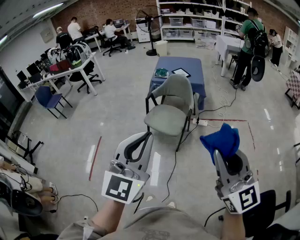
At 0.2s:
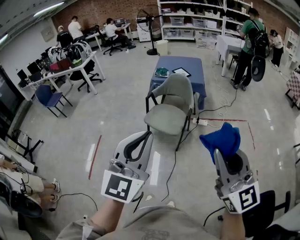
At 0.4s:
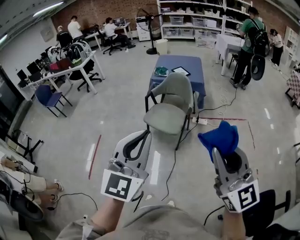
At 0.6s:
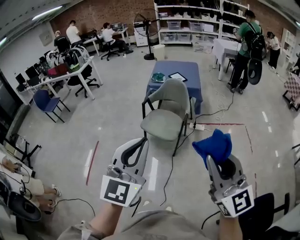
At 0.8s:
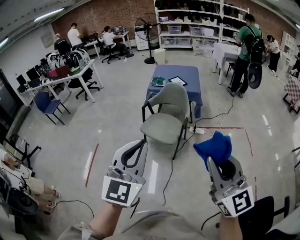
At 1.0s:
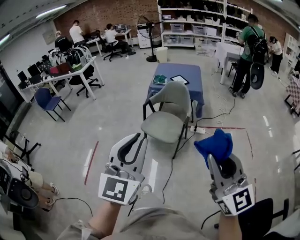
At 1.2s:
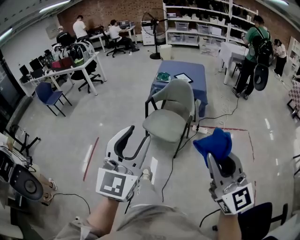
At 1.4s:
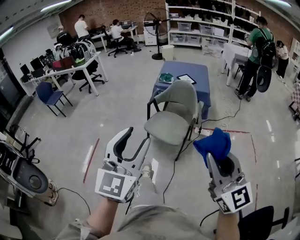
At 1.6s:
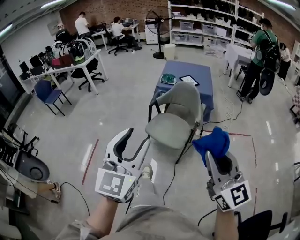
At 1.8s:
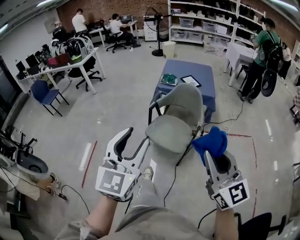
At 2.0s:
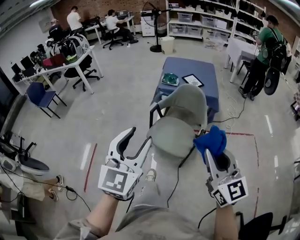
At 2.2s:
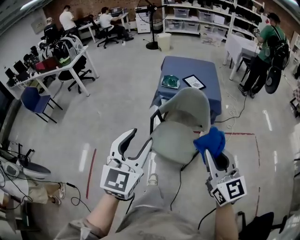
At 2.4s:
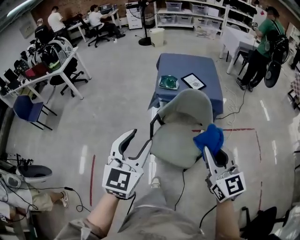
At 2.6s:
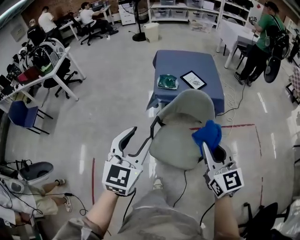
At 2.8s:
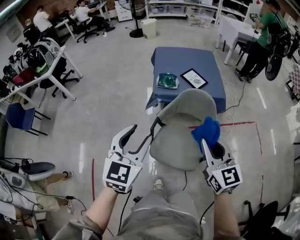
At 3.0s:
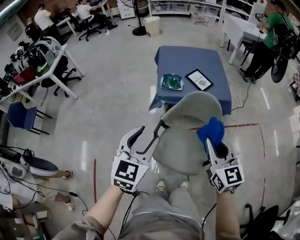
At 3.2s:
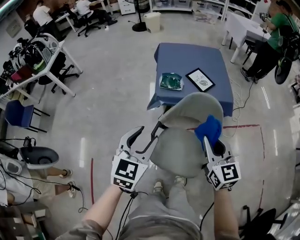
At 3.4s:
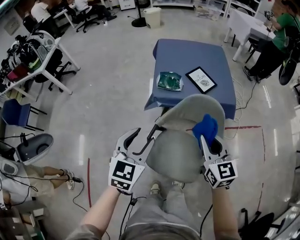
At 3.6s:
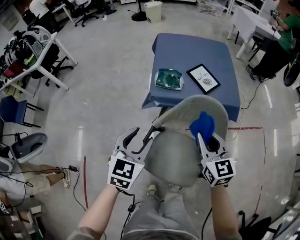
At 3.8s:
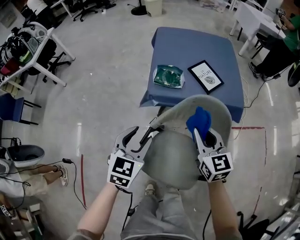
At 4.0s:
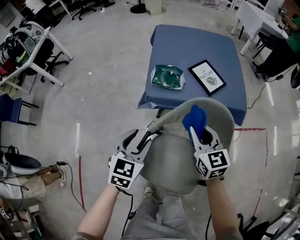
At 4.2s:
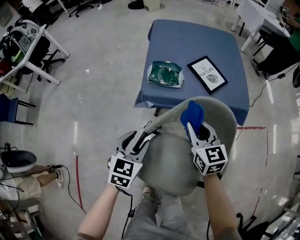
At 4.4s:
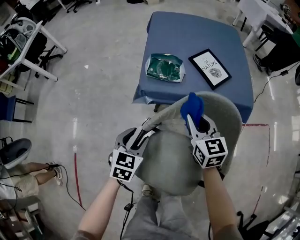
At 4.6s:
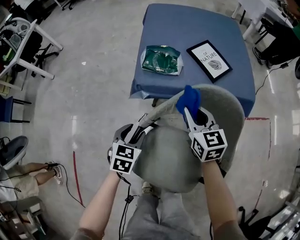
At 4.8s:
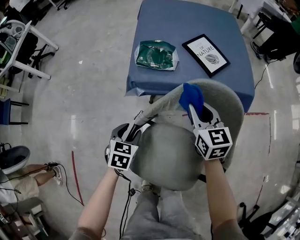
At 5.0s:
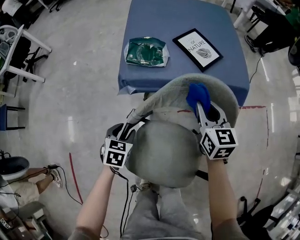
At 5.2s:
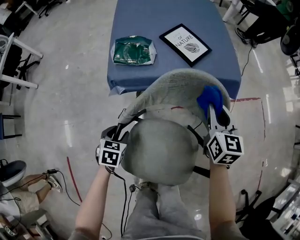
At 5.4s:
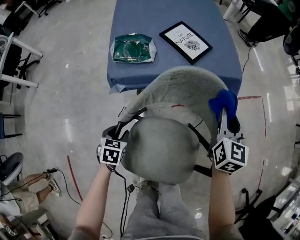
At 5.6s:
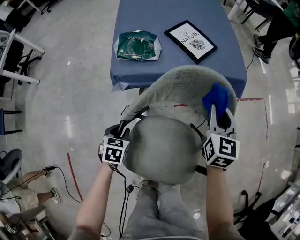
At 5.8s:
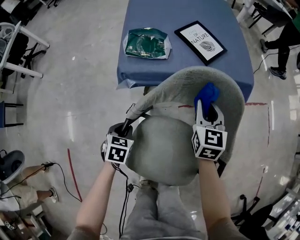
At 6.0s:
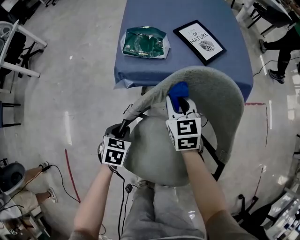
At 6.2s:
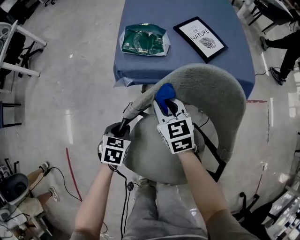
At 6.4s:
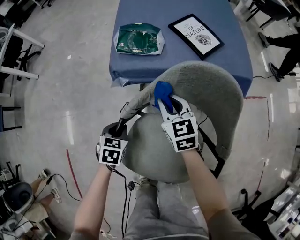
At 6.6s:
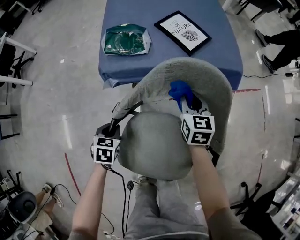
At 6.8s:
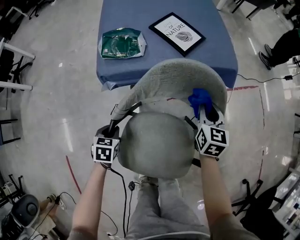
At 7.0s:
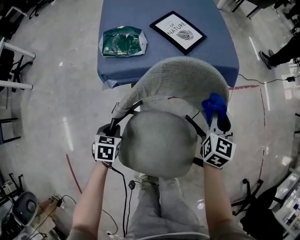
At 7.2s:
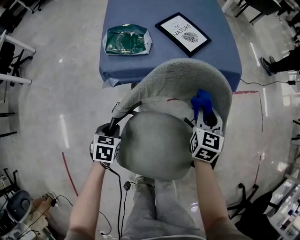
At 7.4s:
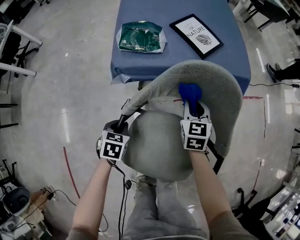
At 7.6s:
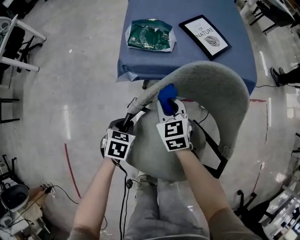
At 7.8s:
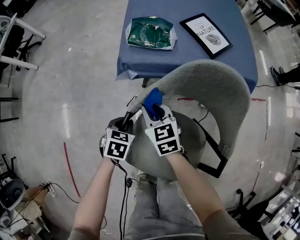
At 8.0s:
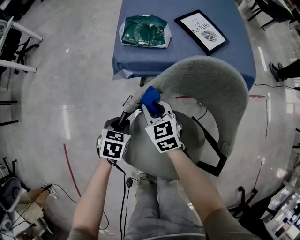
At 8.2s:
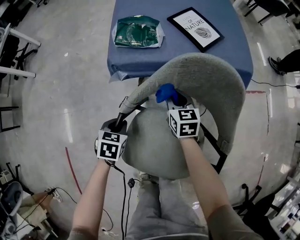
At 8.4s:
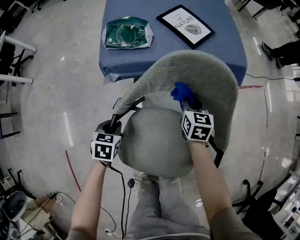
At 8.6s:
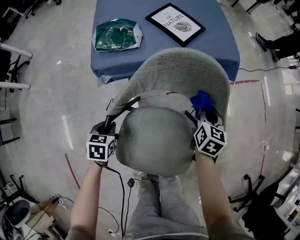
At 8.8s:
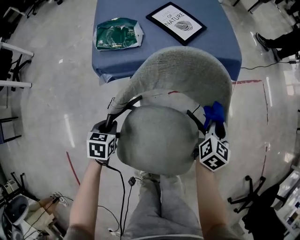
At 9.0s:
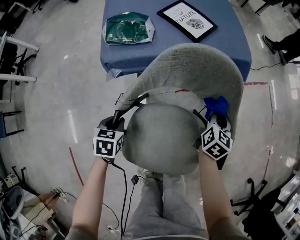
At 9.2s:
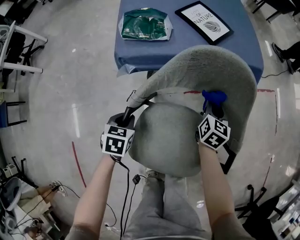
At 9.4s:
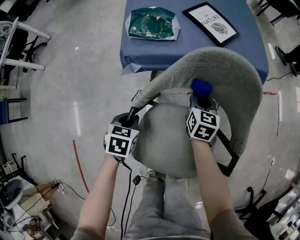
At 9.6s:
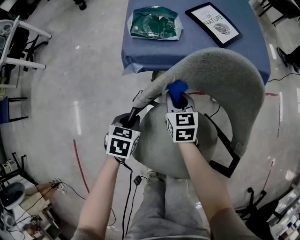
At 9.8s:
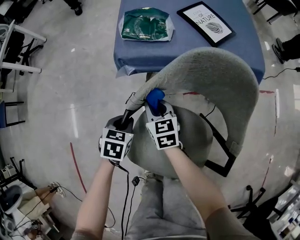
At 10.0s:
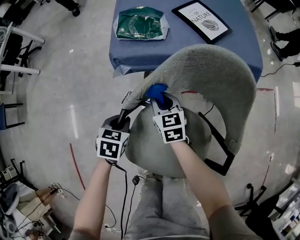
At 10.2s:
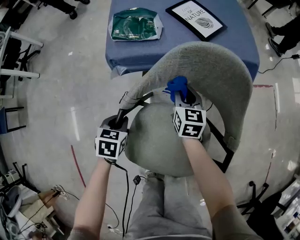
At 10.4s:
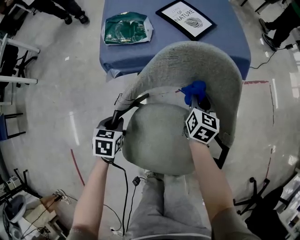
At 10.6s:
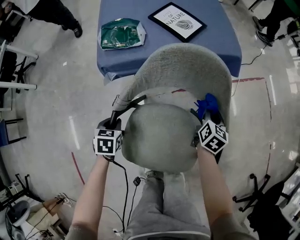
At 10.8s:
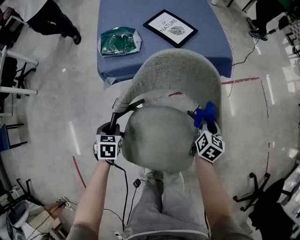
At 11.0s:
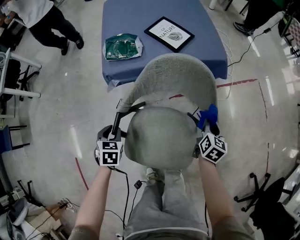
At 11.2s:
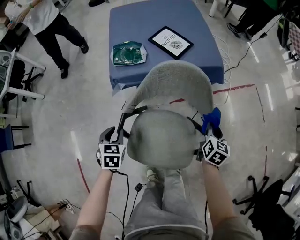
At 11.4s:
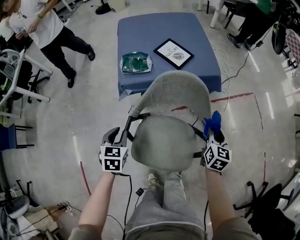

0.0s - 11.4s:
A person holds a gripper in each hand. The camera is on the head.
0.0s - 1.4s: The right gripper is displaced forward and downward by about 10 cm. Meanwhile the left gripper heads forward, covering roughly 10 cm, and opens.
1.4s - 2.8s: The pair of grippers is taken forward, approximately 50 cm. The right gripper rotates approximately 30 degrees, while the left gripper swivels roughly 30 degrees.
2.8s - 4.2s: The left gripper goes approximately 40 cm downward and forward, and swivels approximately 20 degrees. The right gripper shifts some 40 cm forward and downward.
4.2s - 5.6s: The left gripper shifts approximately 20 cm downward, and rotates some 30 degrees. The right gripper shifts about 15 cm to the right, and rotates about 30 degrees.
5.6s - 7.2s: The right gripper travels downward by about 5 cm.
8.6s - 10.0s: The right gripper shifts by roughly 30 cm, and swivels roughly 40 degrees.
10.0s - 11.4s: The left gripper goes roughly 20 cm upward, while the right gripper heads to the right and upward, covering some 40 cm, and turns by roughly 40 degrees.

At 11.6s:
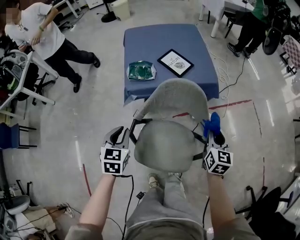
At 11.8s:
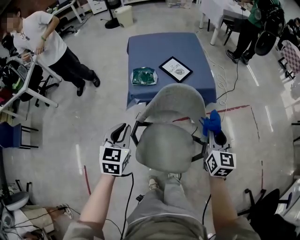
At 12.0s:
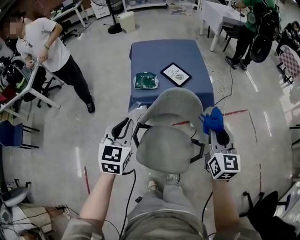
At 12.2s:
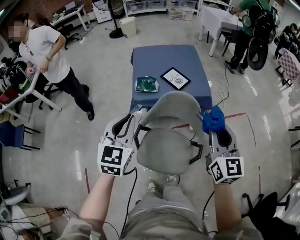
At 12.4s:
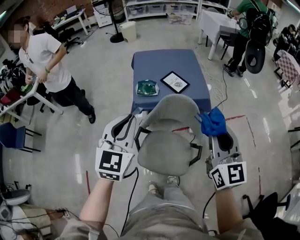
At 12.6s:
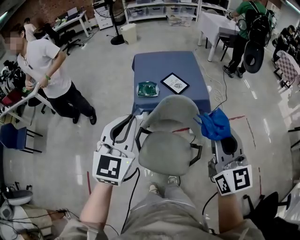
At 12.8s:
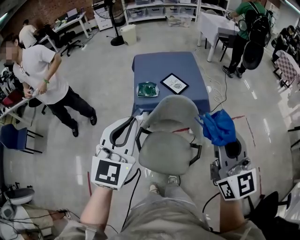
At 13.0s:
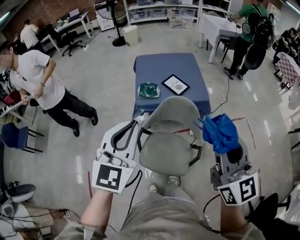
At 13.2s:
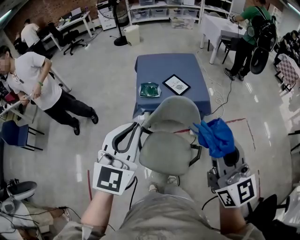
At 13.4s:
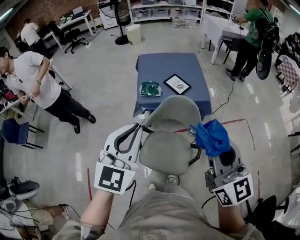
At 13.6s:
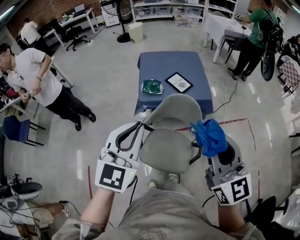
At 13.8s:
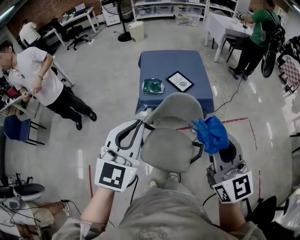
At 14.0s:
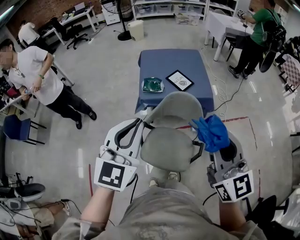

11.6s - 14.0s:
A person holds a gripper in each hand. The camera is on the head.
11.6s - 12.8s: Both grippers travel together upward, roughly 35 cm. The right gripper tips its fingers upward by approximately 30 degrees. The left gripper angles its fingers upward, by approximately 30 degrees.
12.8s - 14.0s: The grippers move only a little.

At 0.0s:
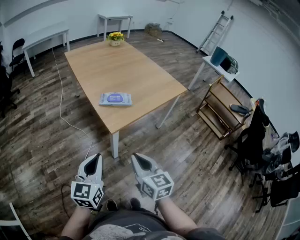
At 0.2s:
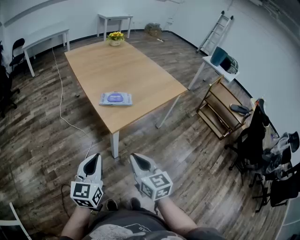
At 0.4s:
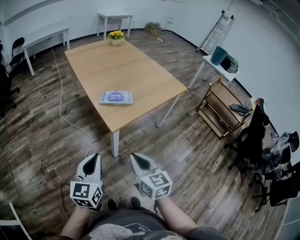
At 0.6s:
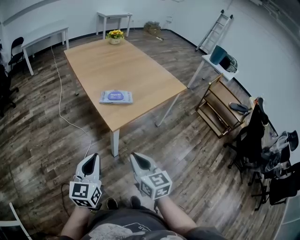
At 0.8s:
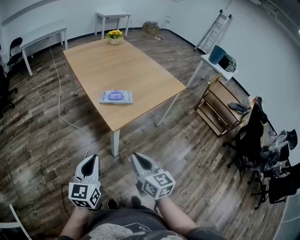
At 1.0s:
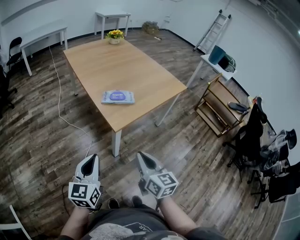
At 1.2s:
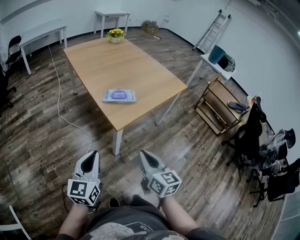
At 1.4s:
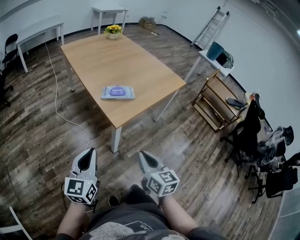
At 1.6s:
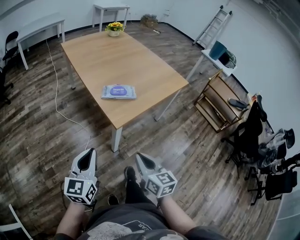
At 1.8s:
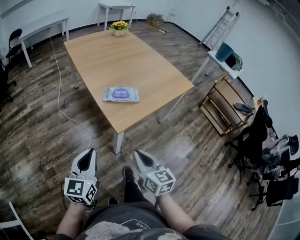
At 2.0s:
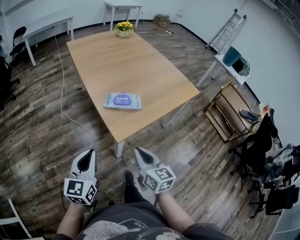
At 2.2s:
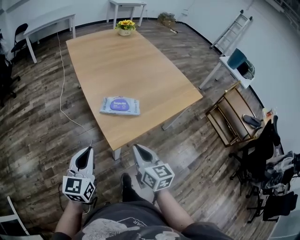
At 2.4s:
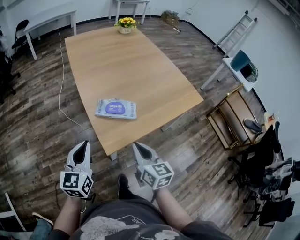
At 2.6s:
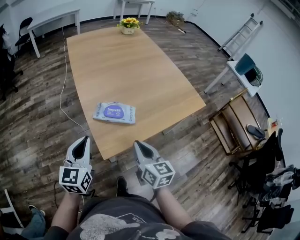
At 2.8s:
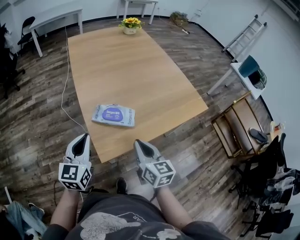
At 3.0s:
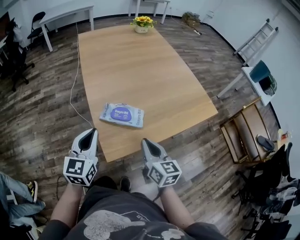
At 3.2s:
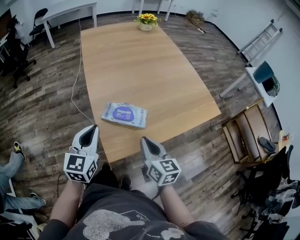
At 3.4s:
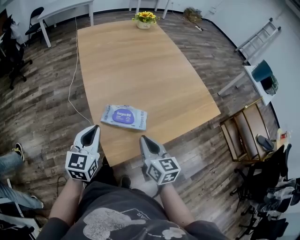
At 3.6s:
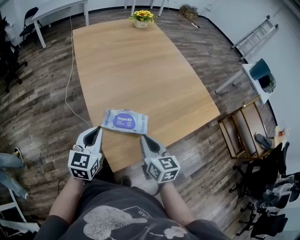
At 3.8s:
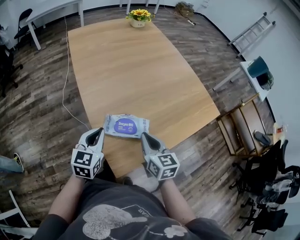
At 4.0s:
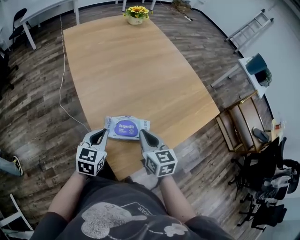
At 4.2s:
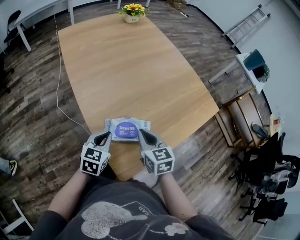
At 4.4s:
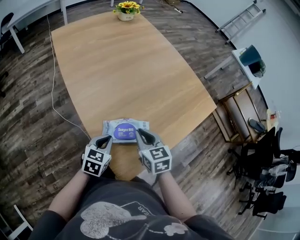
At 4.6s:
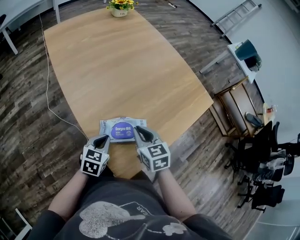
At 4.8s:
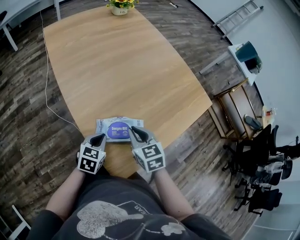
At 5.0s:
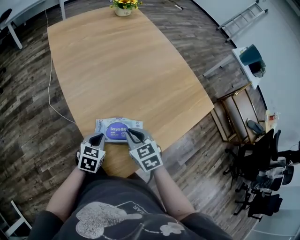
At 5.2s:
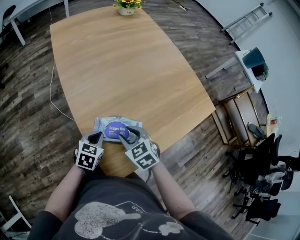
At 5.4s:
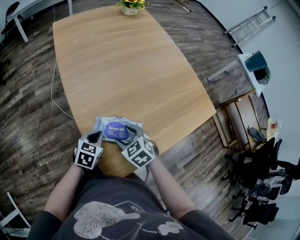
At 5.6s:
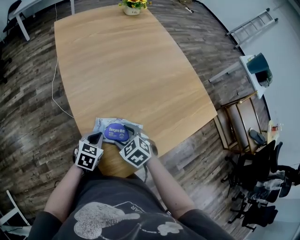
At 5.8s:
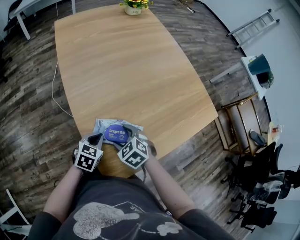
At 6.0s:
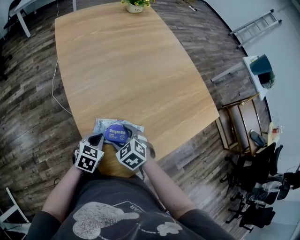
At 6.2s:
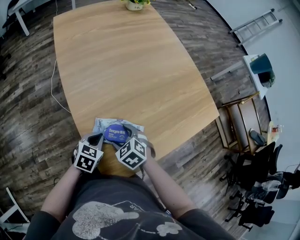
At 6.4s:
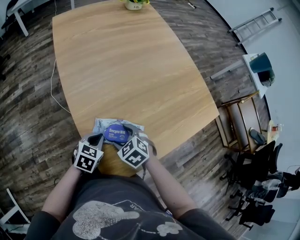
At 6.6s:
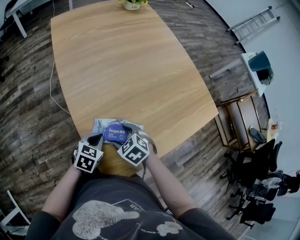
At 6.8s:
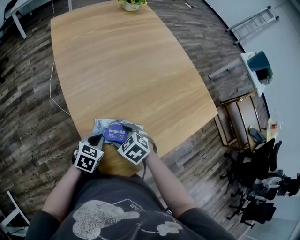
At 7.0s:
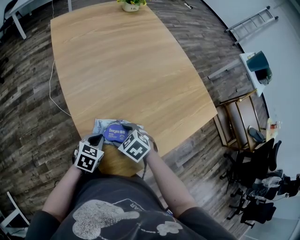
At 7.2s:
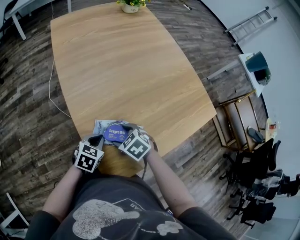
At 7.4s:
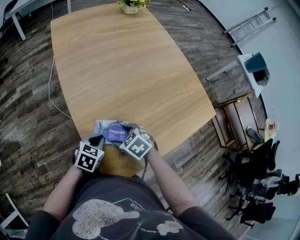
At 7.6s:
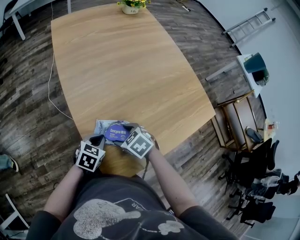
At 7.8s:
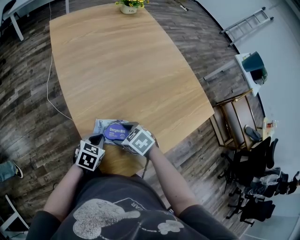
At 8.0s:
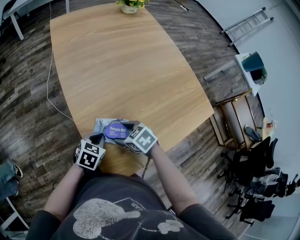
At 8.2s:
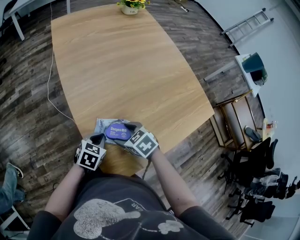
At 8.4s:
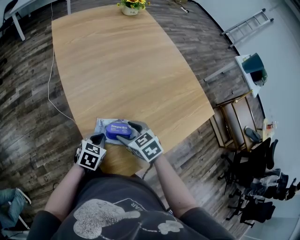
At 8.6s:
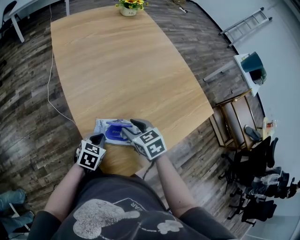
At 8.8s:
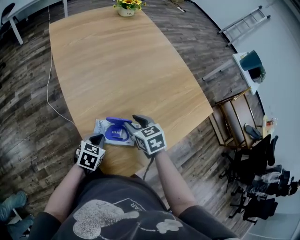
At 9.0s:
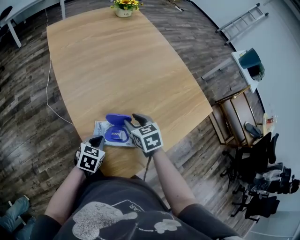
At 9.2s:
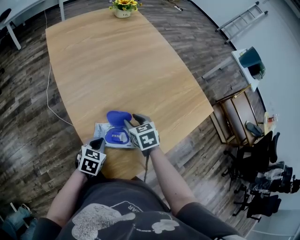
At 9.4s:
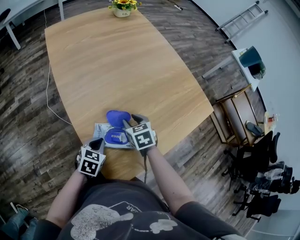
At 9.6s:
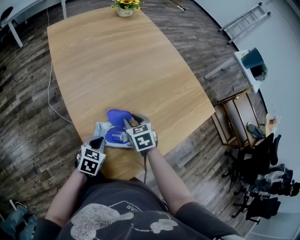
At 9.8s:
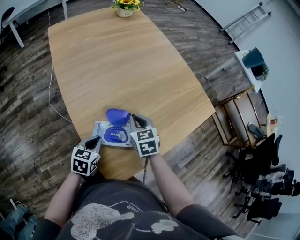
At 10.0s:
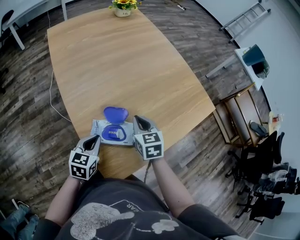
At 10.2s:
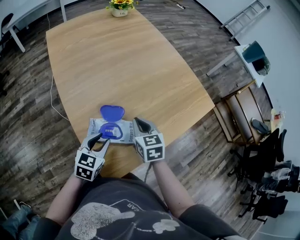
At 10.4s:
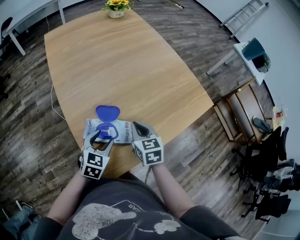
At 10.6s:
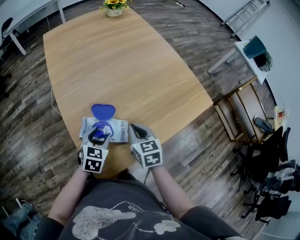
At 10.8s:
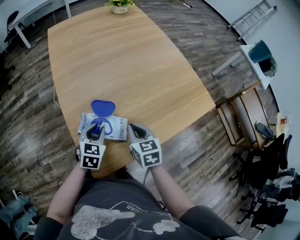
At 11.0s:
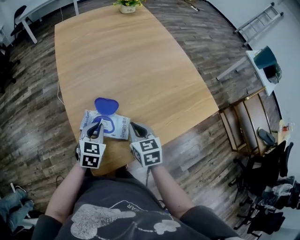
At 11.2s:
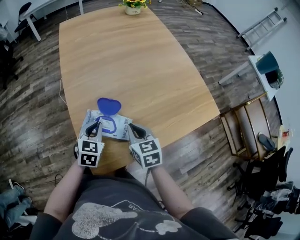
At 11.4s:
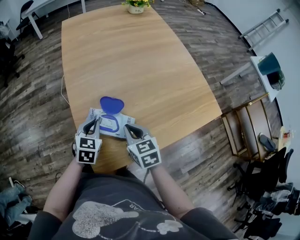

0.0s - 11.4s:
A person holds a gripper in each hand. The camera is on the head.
0.0s - 1.4s: The left gripper moves to the left, roughly 5 cm.
1.4s - 2.8s: The two grippers go roughly 25 cm forward.
2.8s - 4.2s: The left gripper moves forward and downward, approximately 20 cm, and rotates roughly 30 degrees. The right gripper goes some 15 cm forward.
4.2s - 5.6s: Both grippers travel together downward, some 5 cm. The right gripper turns by approximately 40 degrees, and opens.
5.6s - 7.2s: The grippers stay close to where they were, moving slightly.
7.2s - 8.6s: The right gripper goes approximately 5 cm upward, swivels approximately 30 degrees, and closes.
8.6s - 10.0s: The right gripper heads to the right, covering some 5 cm, turns by roughly 20 degrees, and closes its fingers; the left gripper is displaced upward by approximately 5 cm.
10.0s - 11.4s: The right gripper changes place by approximately 5 cm. Meanwhile the left gripper rotates roughly 20 degrees, and opens, then closes again.
